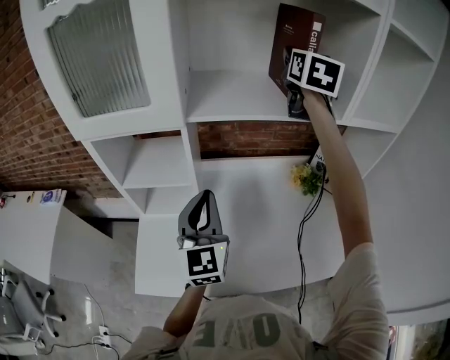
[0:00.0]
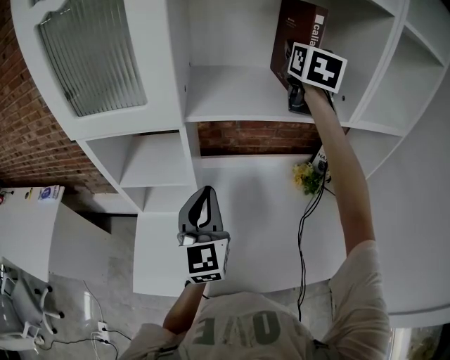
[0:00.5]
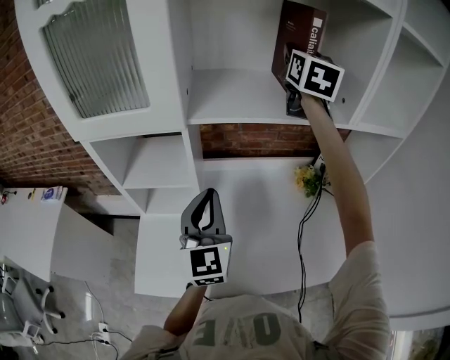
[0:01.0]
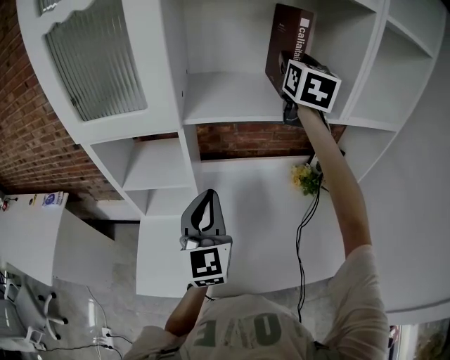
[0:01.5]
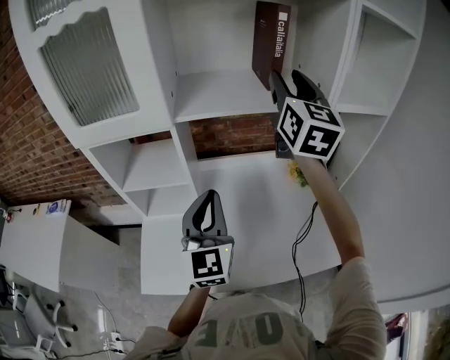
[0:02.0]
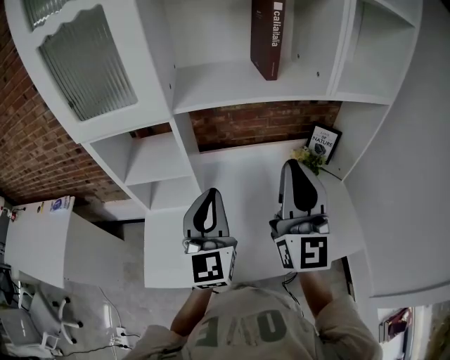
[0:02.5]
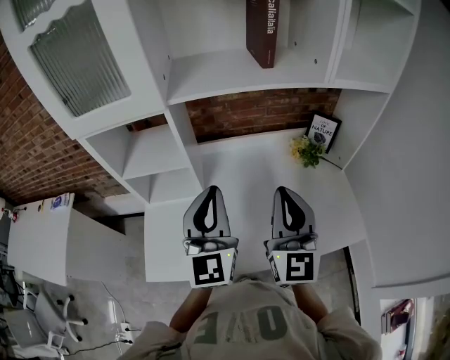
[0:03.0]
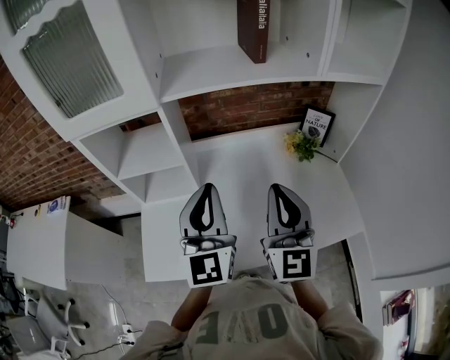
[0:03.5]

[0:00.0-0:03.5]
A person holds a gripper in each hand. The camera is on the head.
0:00.0 to 0:02.0: The right gripper travels backward by roughly 10 cm.
0:02.0 to 0:03.5: The right gripper goes approximately 30 cm backward and downward, and closes up.

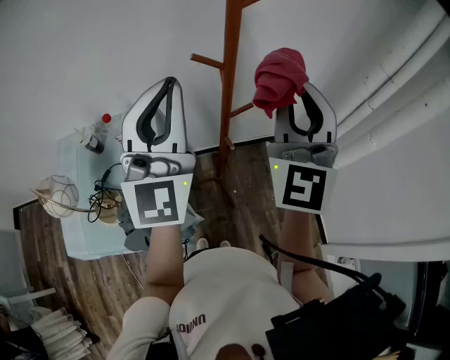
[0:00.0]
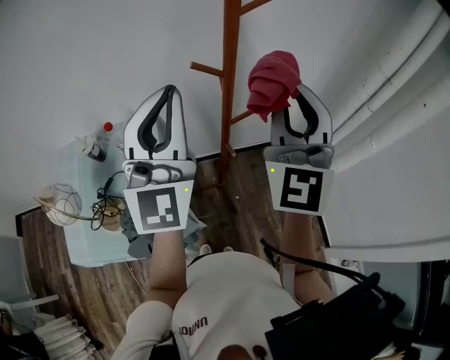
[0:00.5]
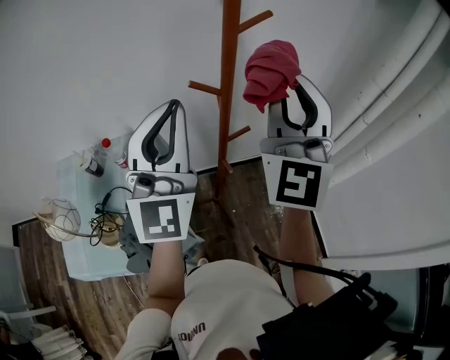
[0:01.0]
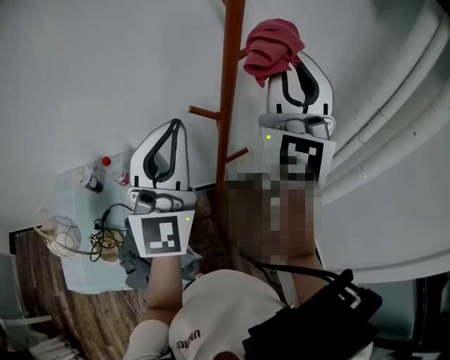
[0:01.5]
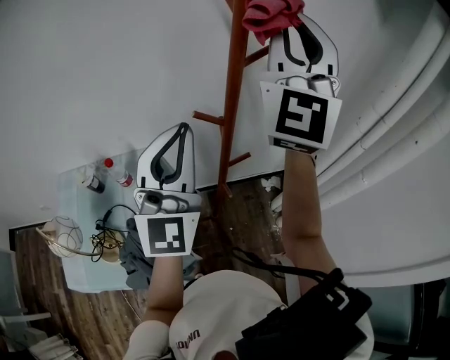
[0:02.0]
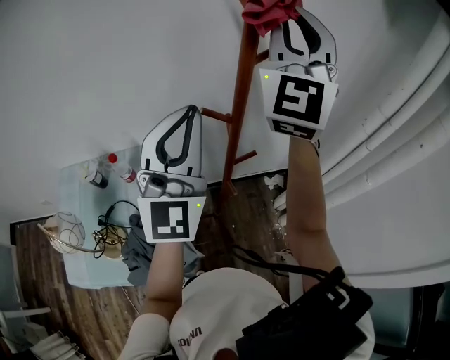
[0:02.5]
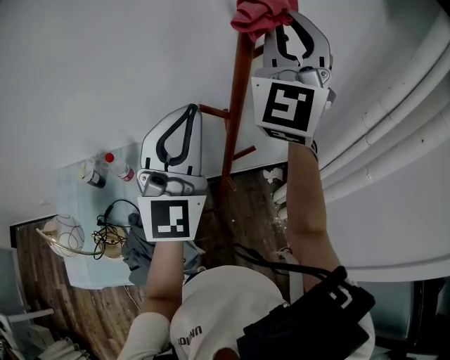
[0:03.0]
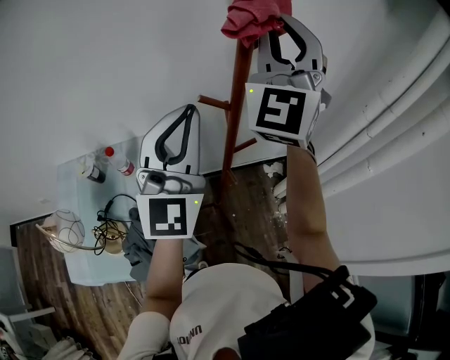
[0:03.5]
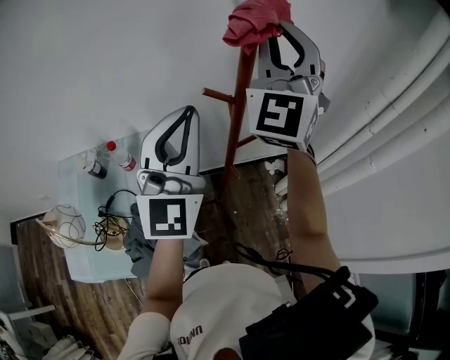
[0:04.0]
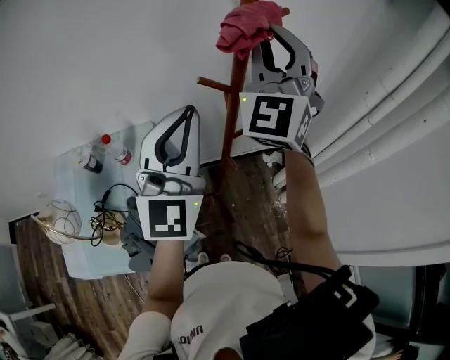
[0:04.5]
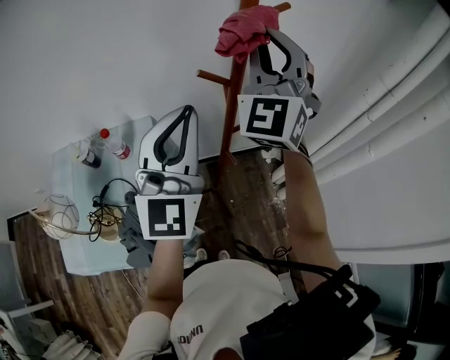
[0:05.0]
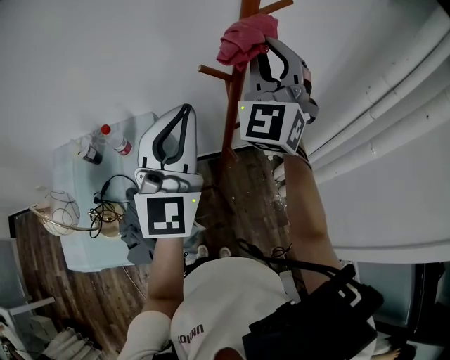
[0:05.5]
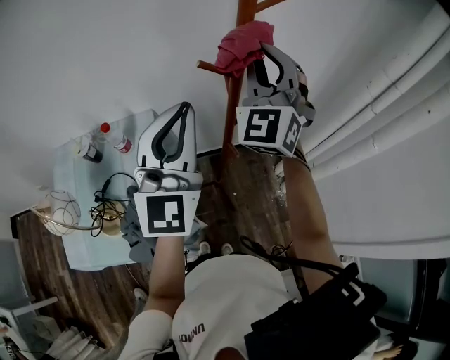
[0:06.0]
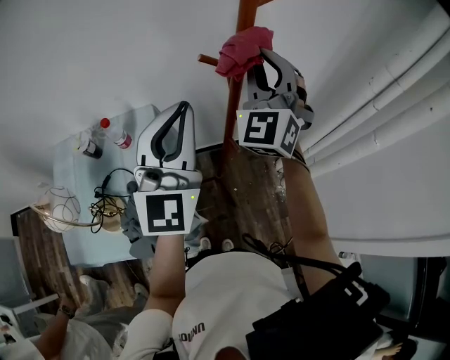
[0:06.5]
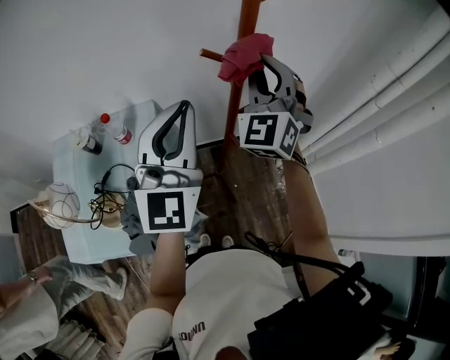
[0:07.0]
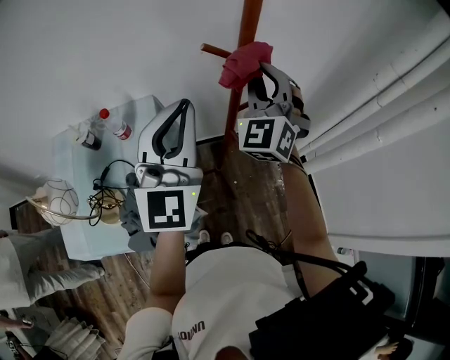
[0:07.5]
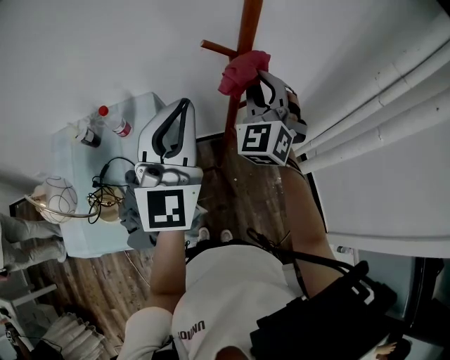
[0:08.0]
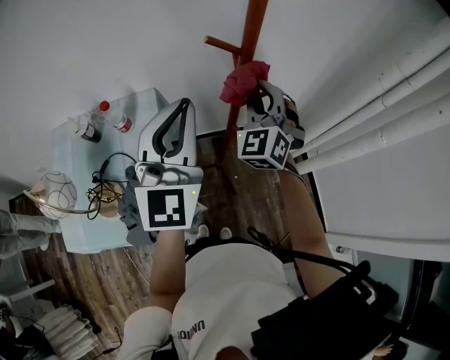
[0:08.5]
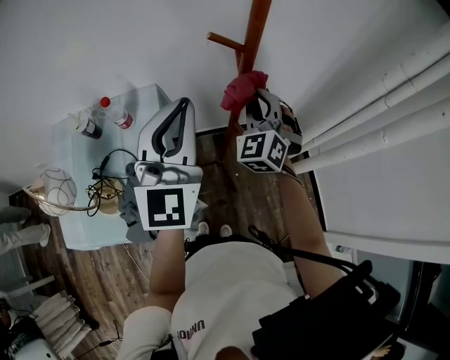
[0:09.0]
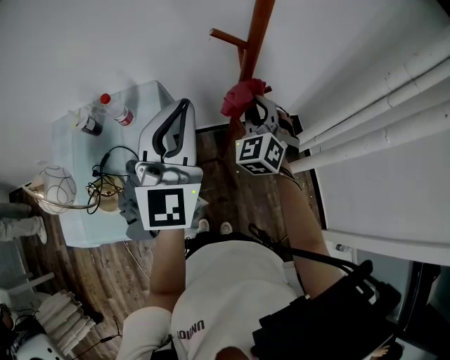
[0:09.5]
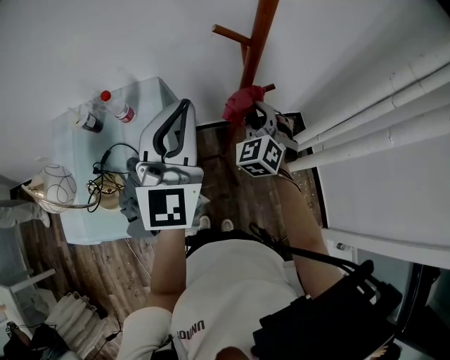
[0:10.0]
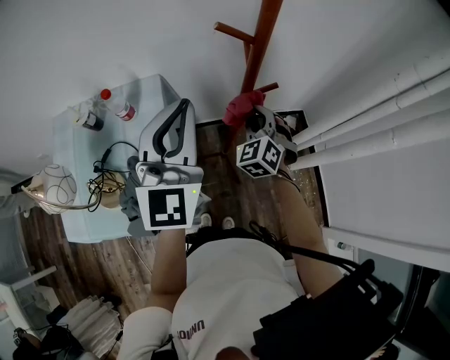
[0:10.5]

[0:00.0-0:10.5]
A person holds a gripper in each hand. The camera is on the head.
0:00.0 to 0:02.0: The right gripper moves upward and forward, approximately 20 cm.
0:02.0 to 0:04.0: The right gripper is displaced downward by approximately 10 cm.
0:04.0 to 0:06.5: The right gripper heads downward, covering approximately 15 cm.
0:06.5 to 0:08.5: The right gripper is displaced downward by approximately 15 cm.
0:08.5 to 0:10.5: The right gripper goes about 15 cm downward, and turns by some 20 degrees.

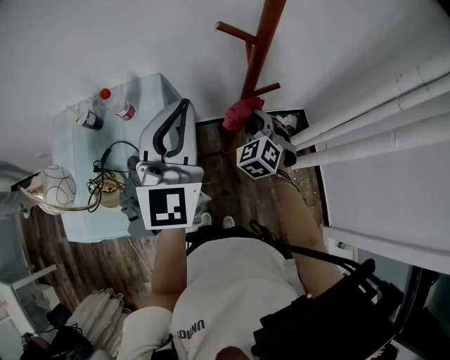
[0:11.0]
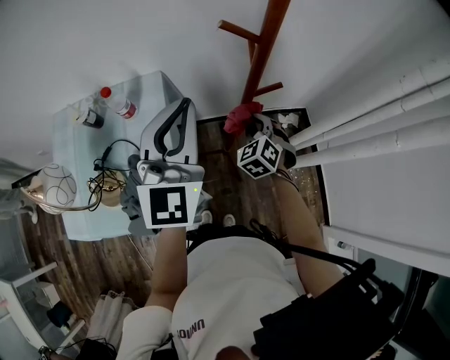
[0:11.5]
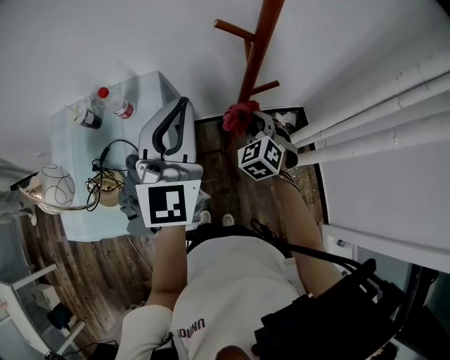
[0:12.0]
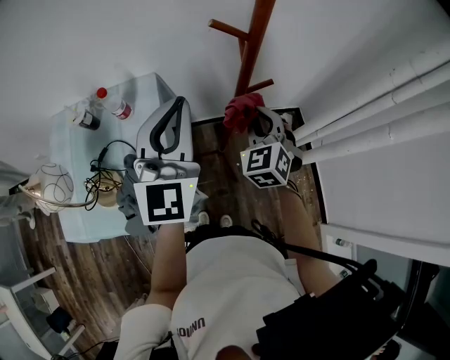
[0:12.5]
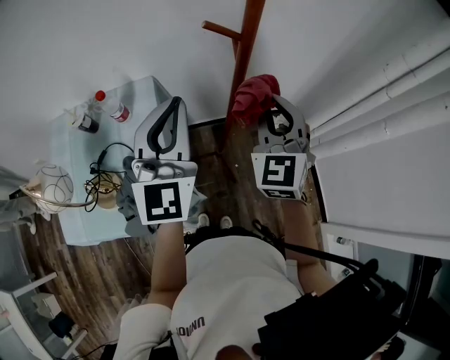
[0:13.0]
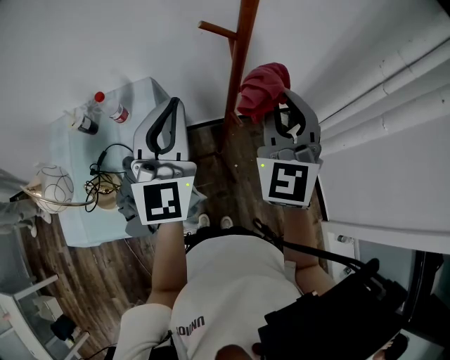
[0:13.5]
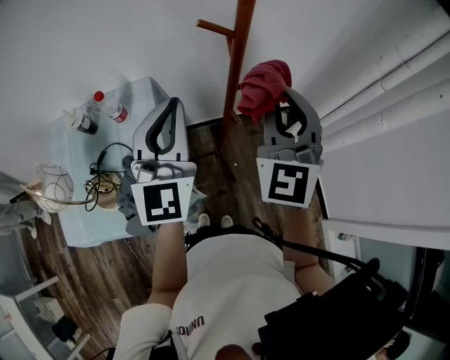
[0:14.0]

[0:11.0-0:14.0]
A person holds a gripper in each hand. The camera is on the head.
0:11.0 to 0:12.5: The right gripper travels upward by some 5 cm.
0:12.5 to 0:14.0: The right gripper shifts roughly 20 cm upward, and turns by roughly 30 degrees.

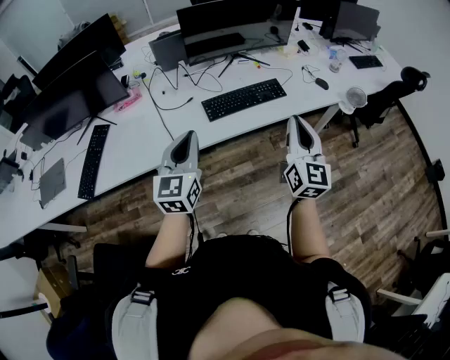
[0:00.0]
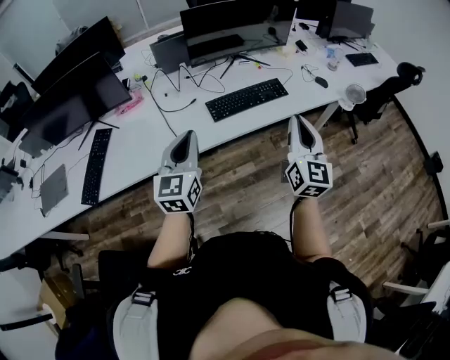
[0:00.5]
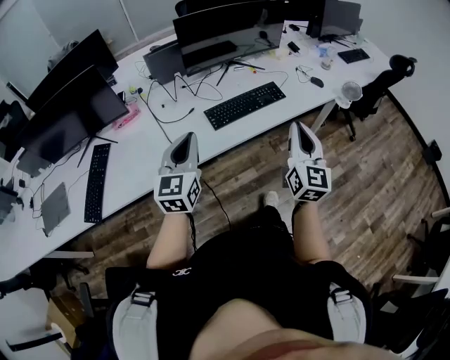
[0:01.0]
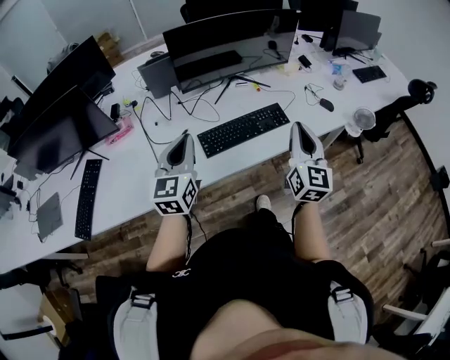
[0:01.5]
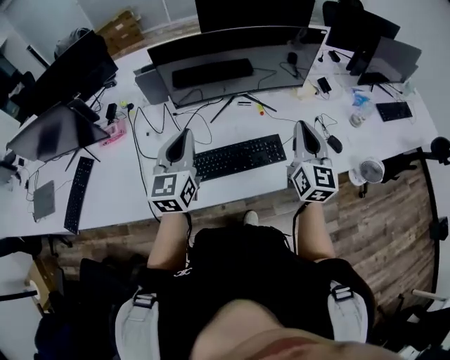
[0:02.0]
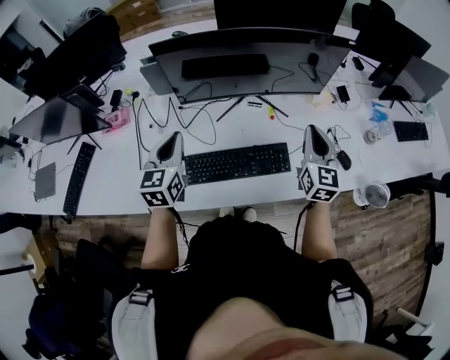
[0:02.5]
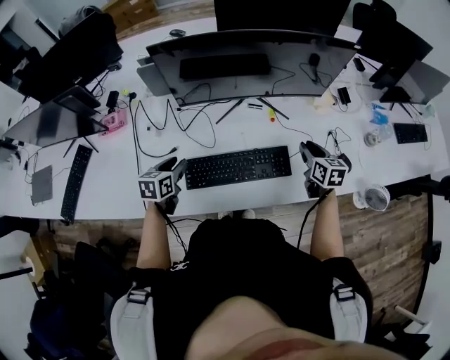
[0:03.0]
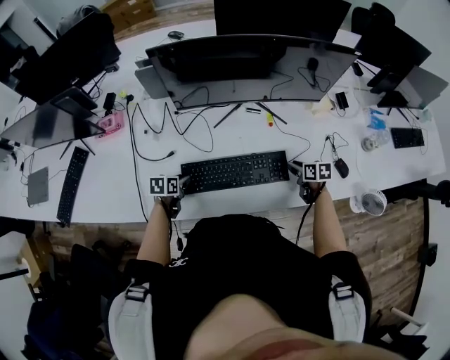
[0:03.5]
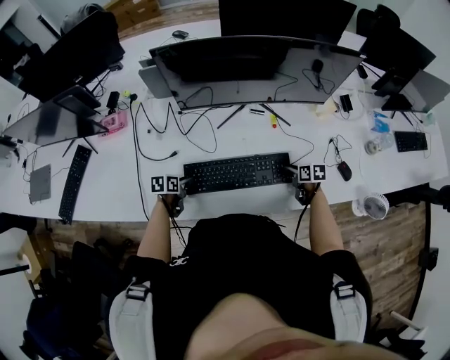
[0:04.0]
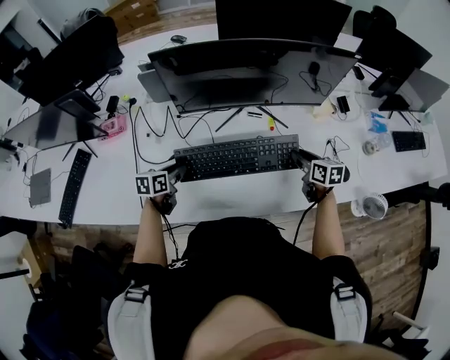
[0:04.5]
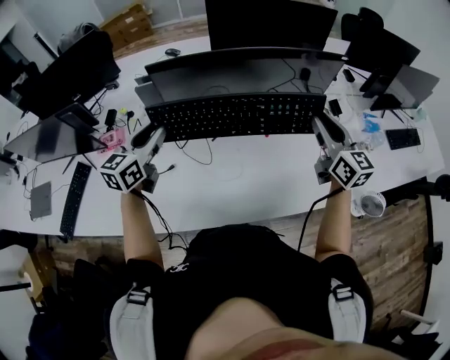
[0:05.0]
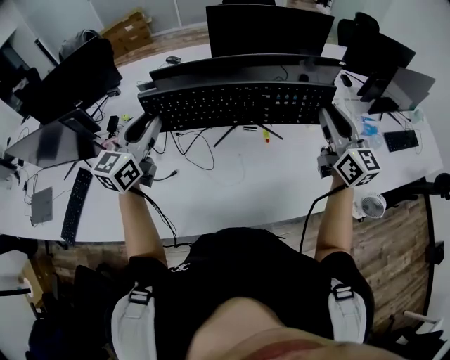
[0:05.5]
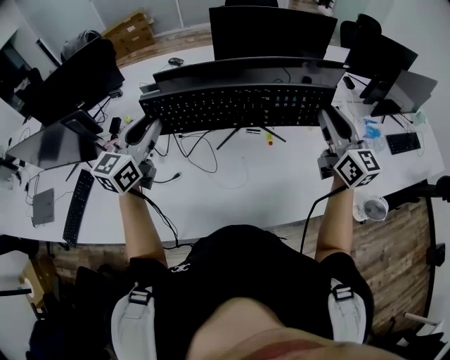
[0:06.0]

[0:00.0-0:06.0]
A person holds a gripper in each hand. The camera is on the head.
0:00.0 to 0:02.0: Both grippers travel together forward, some 35 cm.
0:02.0 to 0:04.0: Both grippers travel together downward, approximately 40 cm. The left gripper tips its fingers downward by approximately 50 degrees, and opens up; the right gripper tips its fingers downward by roughly 50 degrees, and opens up.
0:04.0 to 0:06.0: The two grippers go roughly 50 cm upward. The left gripper tilts its fingers roughly 50 degrees upward. Meanwhile the right gripper tilts its fingers roughly 60 degrees upward.

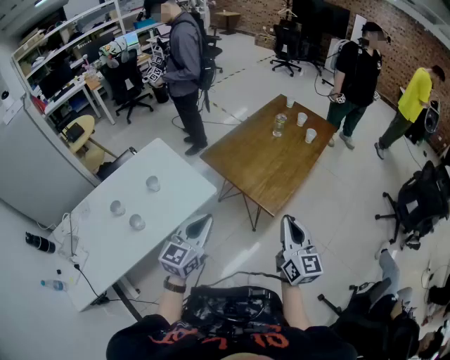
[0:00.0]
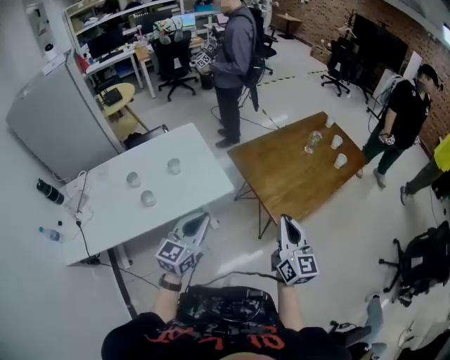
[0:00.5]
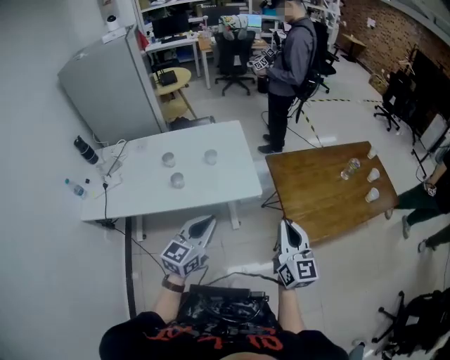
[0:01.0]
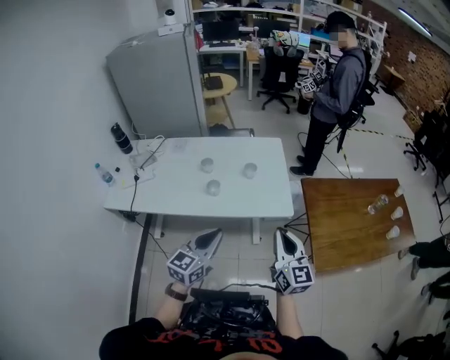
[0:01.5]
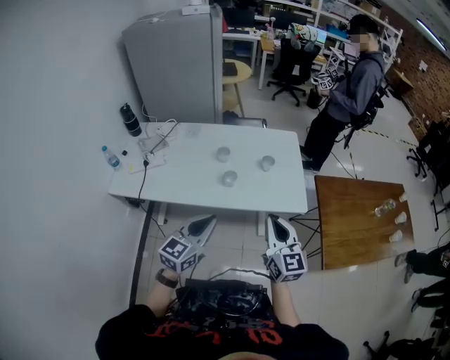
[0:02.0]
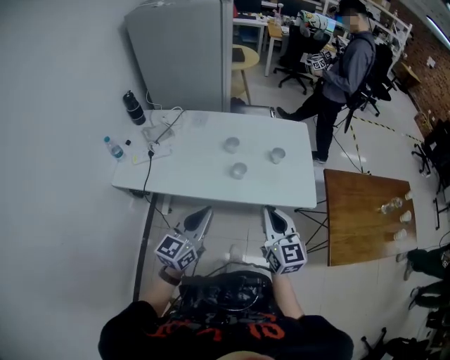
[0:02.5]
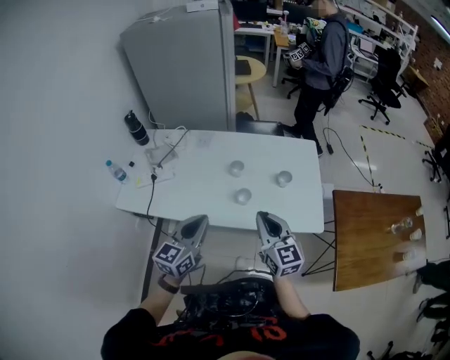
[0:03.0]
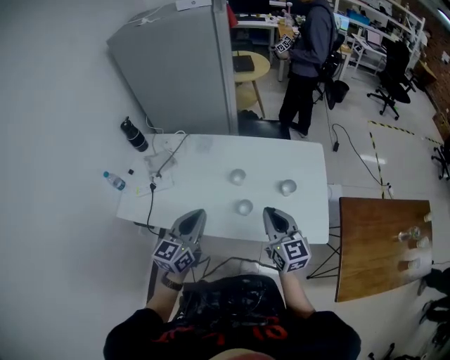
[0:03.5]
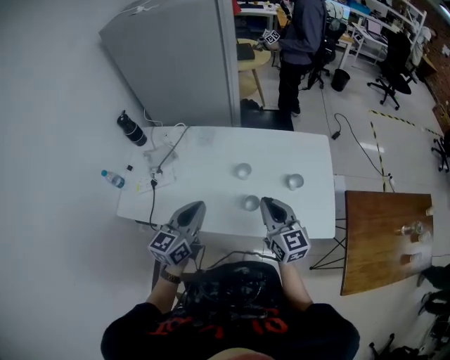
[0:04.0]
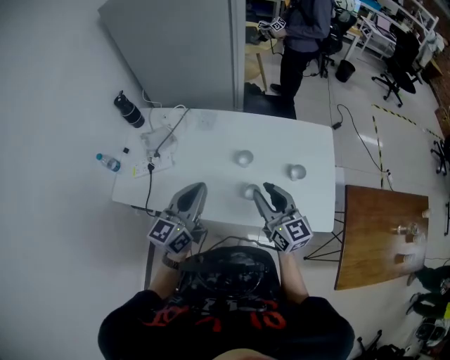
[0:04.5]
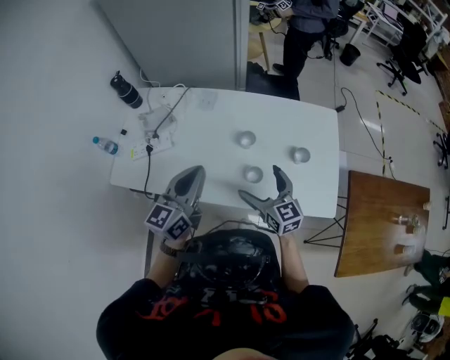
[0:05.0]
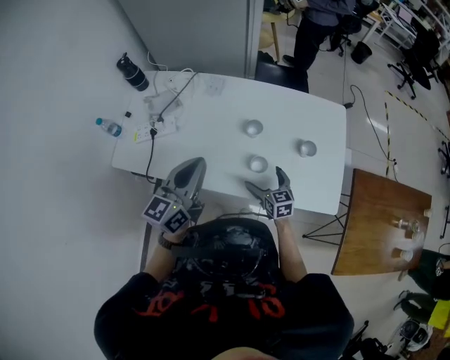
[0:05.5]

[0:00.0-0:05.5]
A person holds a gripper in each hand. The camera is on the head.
0:00.0 to 0:02.0: The right gripper moves approximately 30 cm, and changes its angle by some 50 degrees. The left gripper shifts by roughly 25 cm, and turns by some 40 degrees.
0:02.0 to 0:03.5: The grippers both shift forward by approximately 25 cm.
0:03.5 to 0:05.5: The right gripper moves downward, some 25 cm, rotates roughly 20 degrees, and opens; the left gripper travels to the left and forward by roughly 10 cm.
